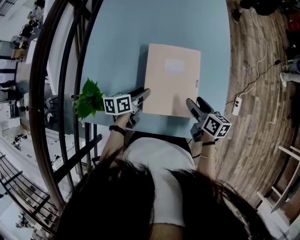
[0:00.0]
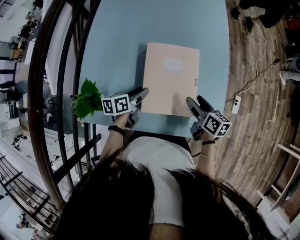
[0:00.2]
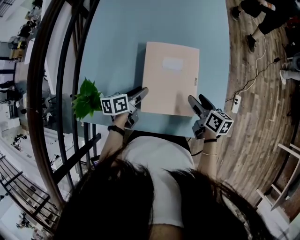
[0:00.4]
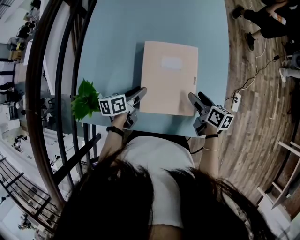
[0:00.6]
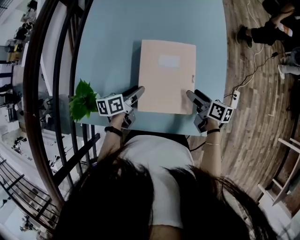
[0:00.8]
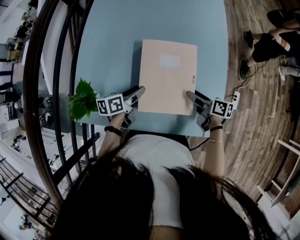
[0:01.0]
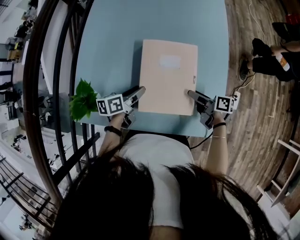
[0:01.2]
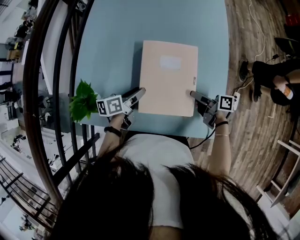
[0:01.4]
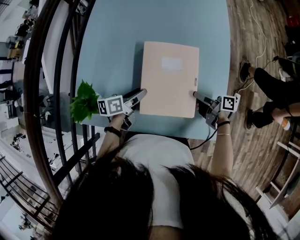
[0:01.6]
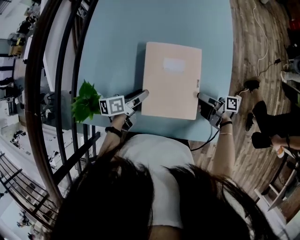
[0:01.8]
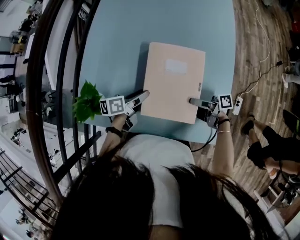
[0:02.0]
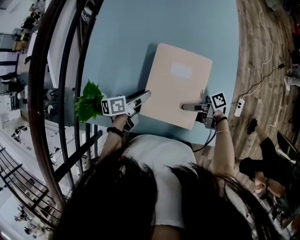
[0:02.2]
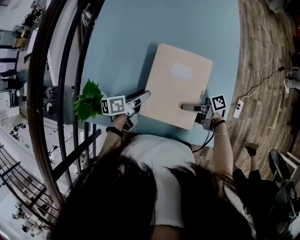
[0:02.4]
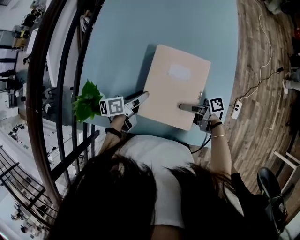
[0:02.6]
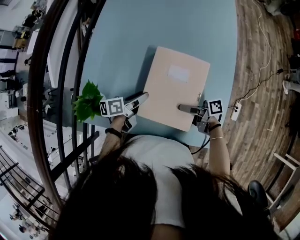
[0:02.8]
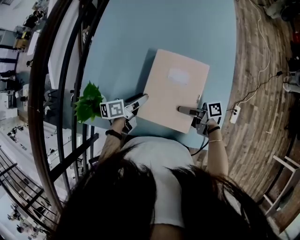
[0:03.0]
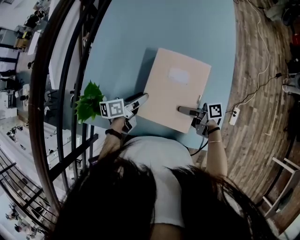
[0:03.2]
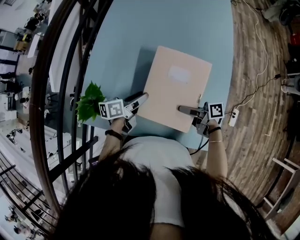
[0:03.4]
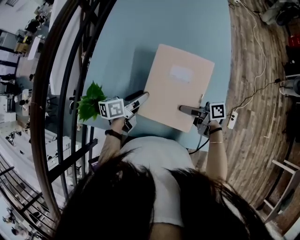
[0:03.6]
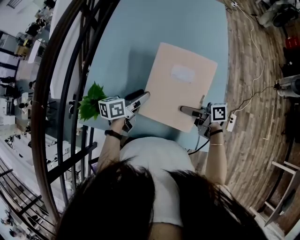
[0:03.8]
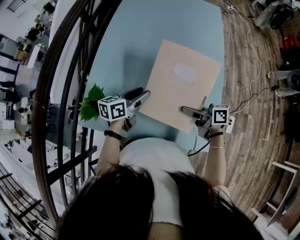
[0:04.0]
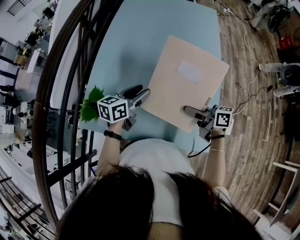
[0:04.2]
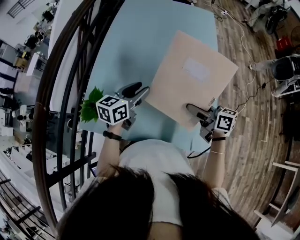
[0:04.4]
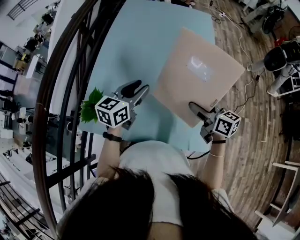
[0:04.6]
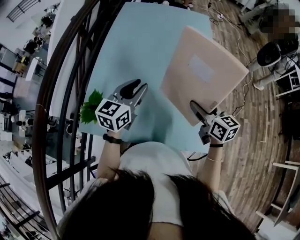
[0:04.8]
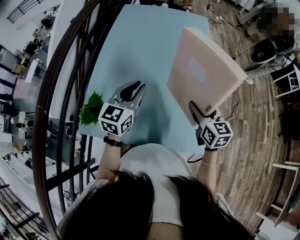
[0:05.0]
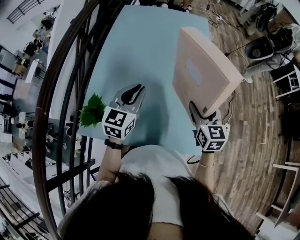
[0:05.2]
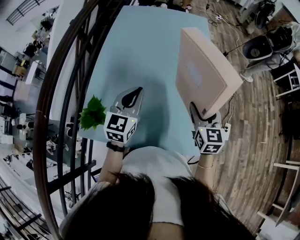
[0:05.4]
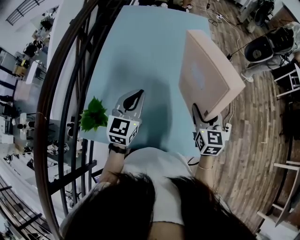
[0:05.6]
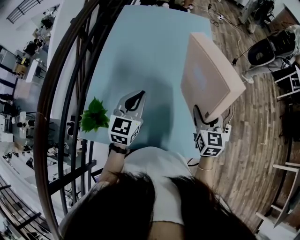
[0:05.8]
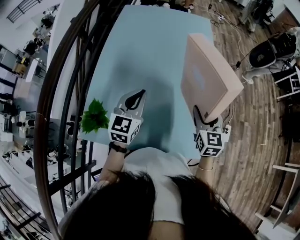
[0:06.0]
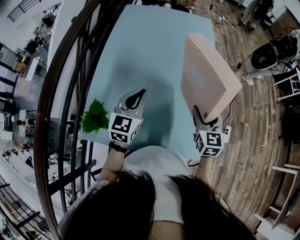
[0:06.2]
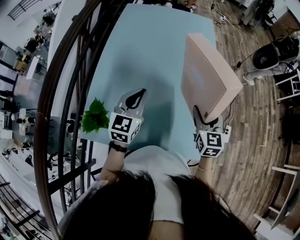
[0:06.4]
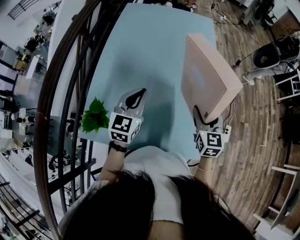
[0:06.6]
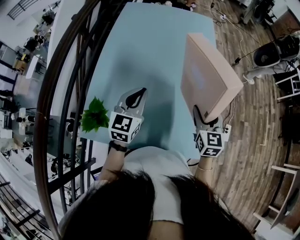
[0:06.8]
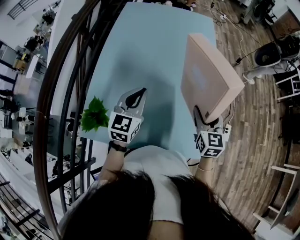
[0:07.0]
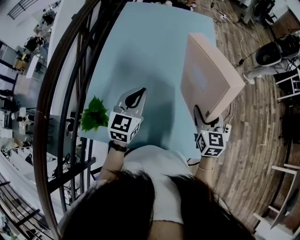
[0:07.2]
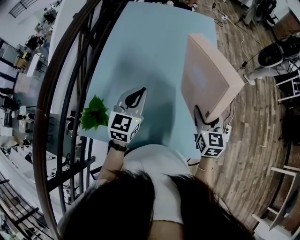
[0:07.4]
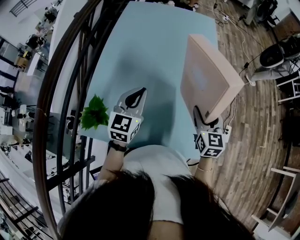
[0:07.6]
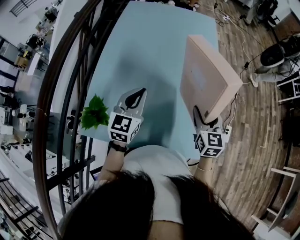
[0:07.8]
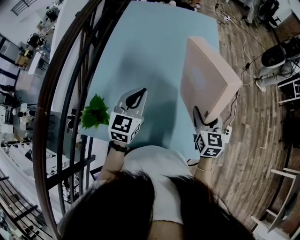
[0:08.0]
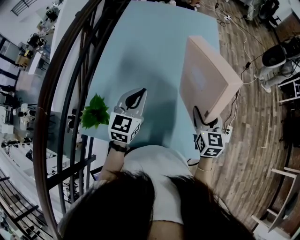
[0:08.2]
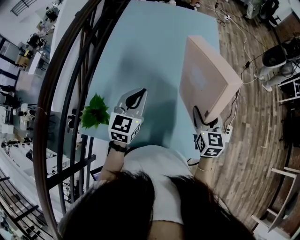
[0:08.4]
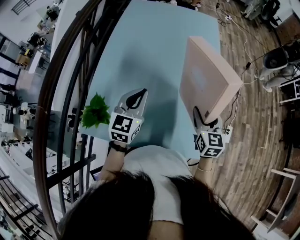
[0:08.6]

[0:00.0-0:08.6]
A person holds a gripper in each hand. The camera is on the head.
0:00.0 to 0:01.4: The right gripper moves downward, about 5 cm, and changes its angle by roughly 30 degrees.
0:01.4 to 0:02.8: The right gripper changes place by some 10 cm, and swivels roughly 20 degrees.
0:02.8 to 0:04.4: Both grippers travel together upward, about 15 cm. The left gripper twists approximately 40 degrees clockwise, seen from behind; the right gripper turns by about 40 degrees.
0:04.4 to 0:05.8: The left gripper heads upward, covering approximately 5 cm, rotates roughly 30 degrees, and closes its fingers. Meanwhile the right gripper shifts some 5 cm to the right, and changes its angle by roughly 60 degrees.
0:05.8 to 0:08.6: The grippers make only small movements.

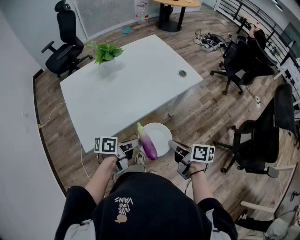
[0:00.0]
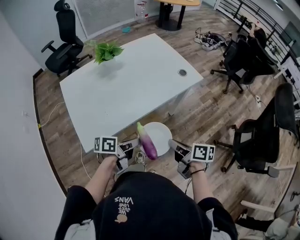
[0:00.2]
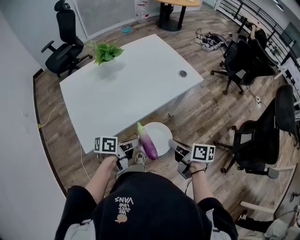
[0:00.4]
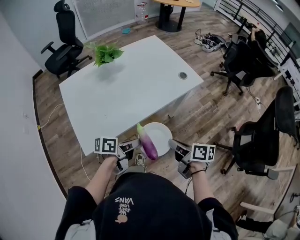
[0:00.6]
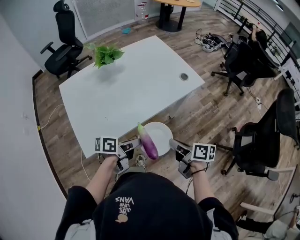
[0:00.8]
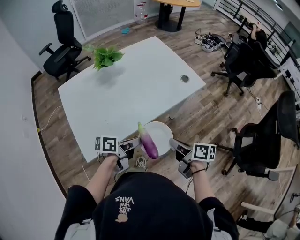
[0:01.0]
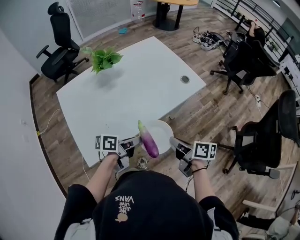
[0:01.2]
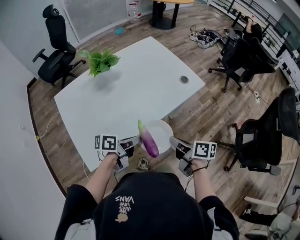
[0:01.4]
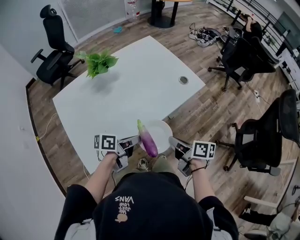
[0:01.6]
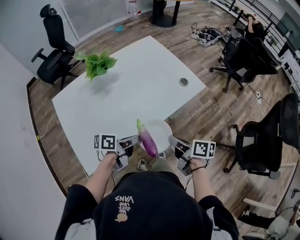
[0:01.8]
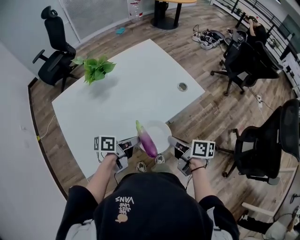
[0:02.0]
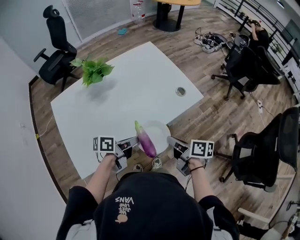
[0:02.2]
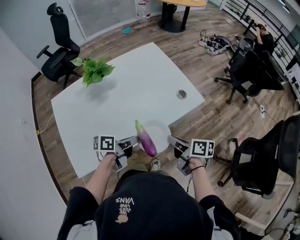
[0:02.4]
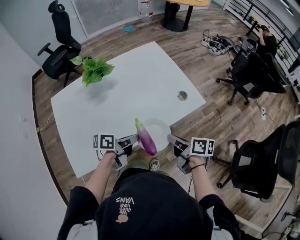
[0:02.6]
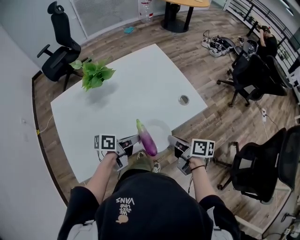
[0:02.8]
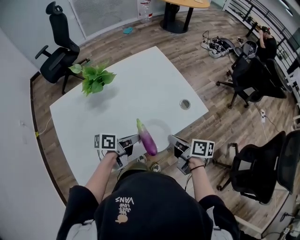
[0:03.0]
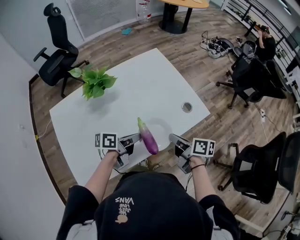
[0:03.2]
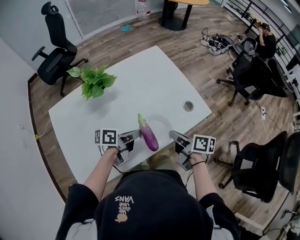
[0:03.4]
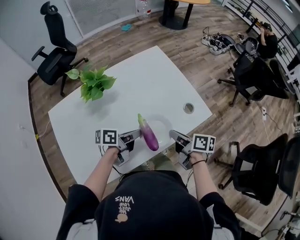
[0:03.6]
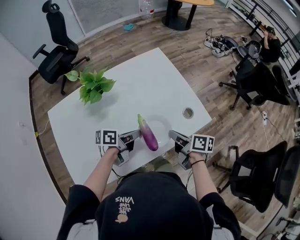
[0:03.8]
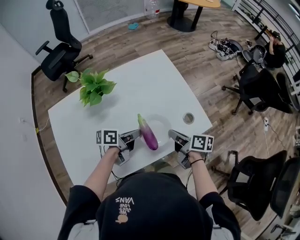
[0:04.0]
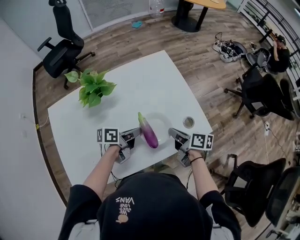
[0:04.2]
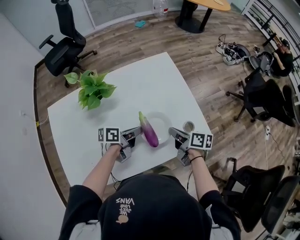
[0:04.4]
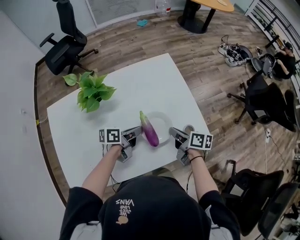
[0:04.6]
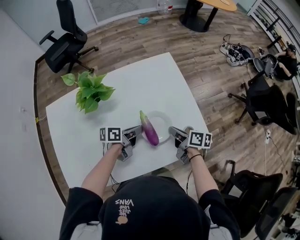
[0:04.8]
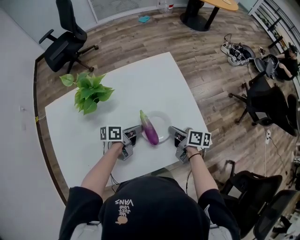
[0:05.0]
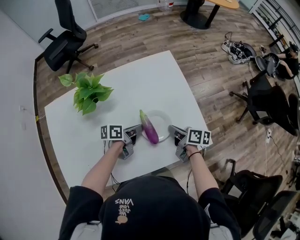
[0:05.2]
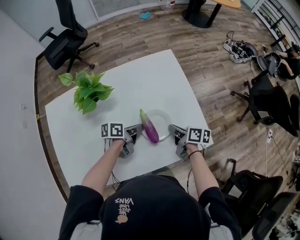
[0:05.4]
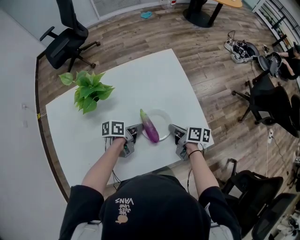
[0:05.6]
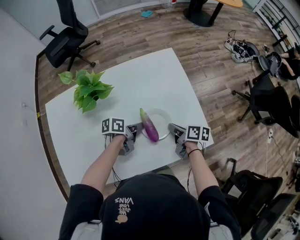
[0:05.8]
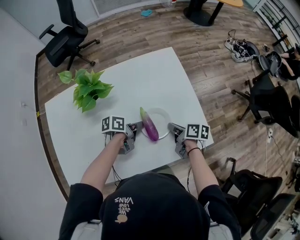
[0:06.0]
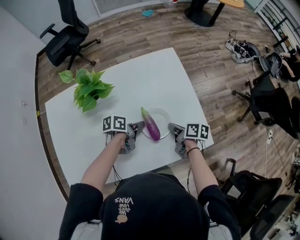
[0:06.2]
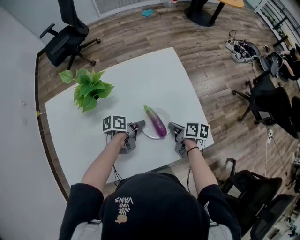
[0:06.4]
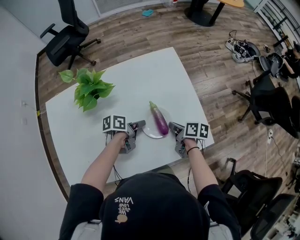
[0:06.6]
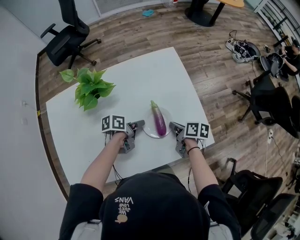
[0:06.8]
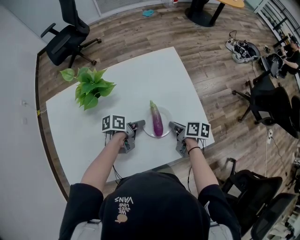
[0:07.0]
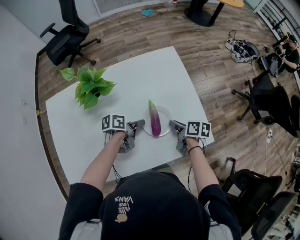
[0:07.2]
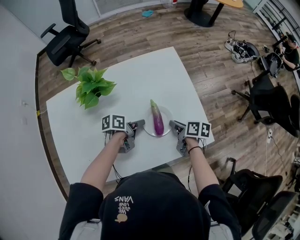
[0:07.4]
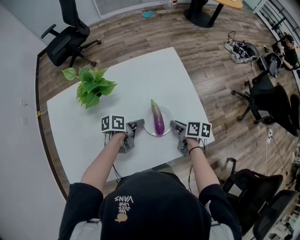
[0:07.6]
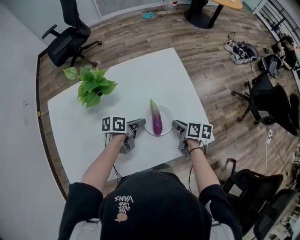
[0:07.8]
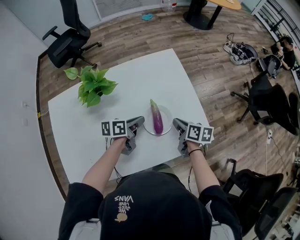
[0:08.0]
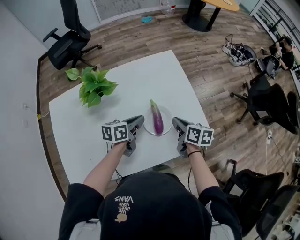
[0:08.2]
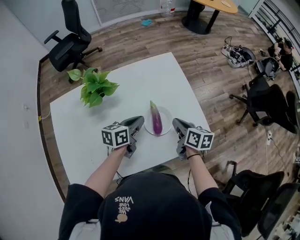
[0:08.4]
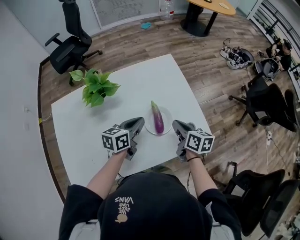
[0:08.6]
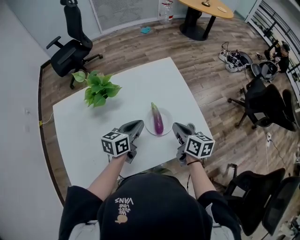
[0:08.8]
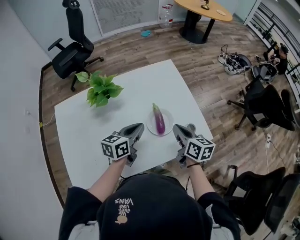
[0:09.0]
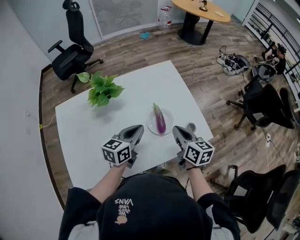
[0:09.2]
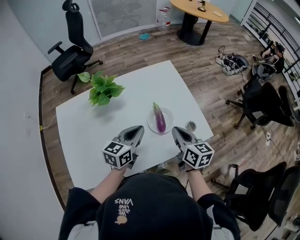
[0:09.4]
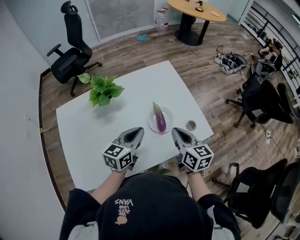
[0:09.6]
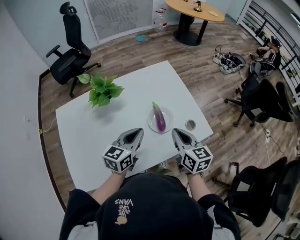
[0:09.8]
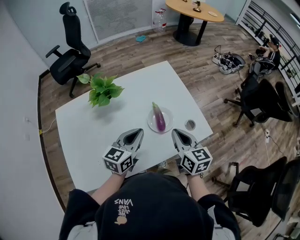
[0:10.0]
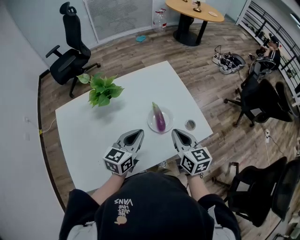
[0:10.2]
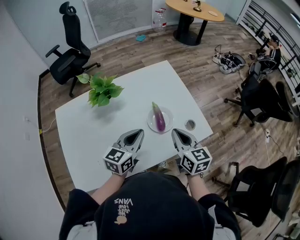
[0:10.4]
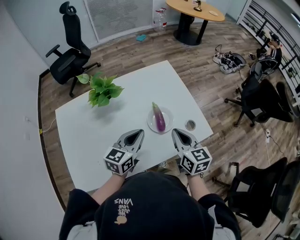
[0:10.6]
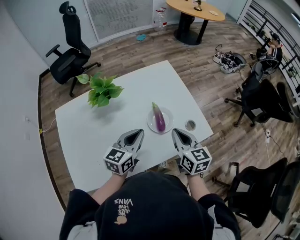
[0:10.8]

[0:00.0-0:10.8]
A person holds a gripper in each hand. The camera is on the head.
0:00.0 to 0:01.6: The two grippers go approximately 10 cm forward.
0:01.6 to 0:03.0: The two grippers go approximately 15 cm forward.
0:03.0 to 0:04.6: The grippers both shift forward by roughly 20 cm.
0:04.6 to 0:06.2: Both grippers travel together downward, approximately 5 cm.
0:06.2 to 0:07.8: The grippers move only a little.
0:07.8 to 0:09.2: Both grippers travel together upward and backward, approximately 15 cm. The left gripper changes its angle by some 40 degrees. The right gripper changes its angle by some 30 degrees.
0:09.2 to 0:10.8: There are only small adjustments of the grippers.

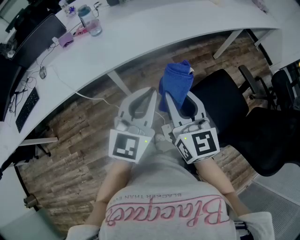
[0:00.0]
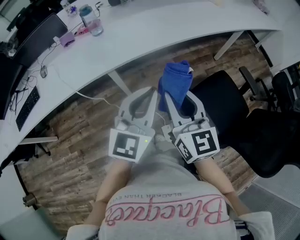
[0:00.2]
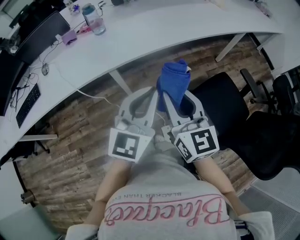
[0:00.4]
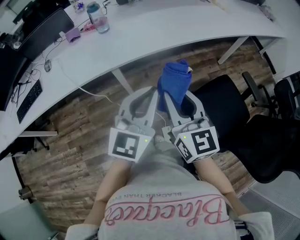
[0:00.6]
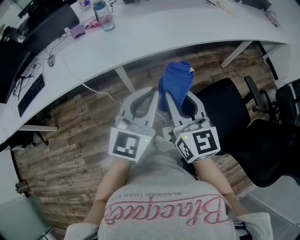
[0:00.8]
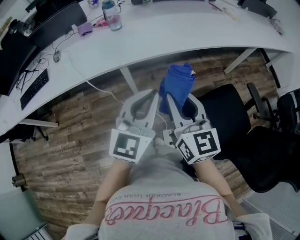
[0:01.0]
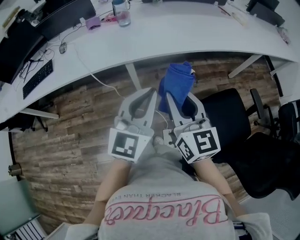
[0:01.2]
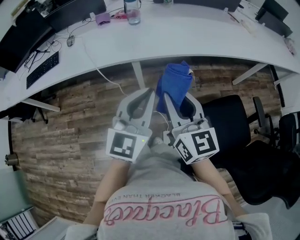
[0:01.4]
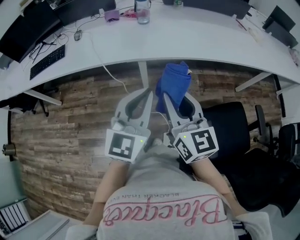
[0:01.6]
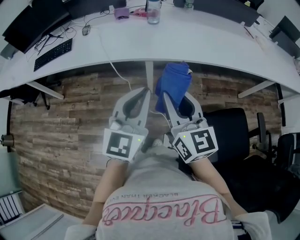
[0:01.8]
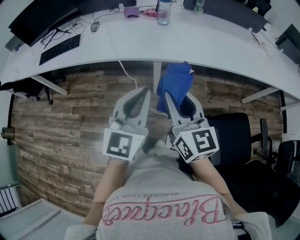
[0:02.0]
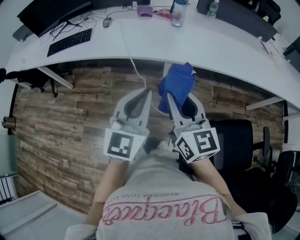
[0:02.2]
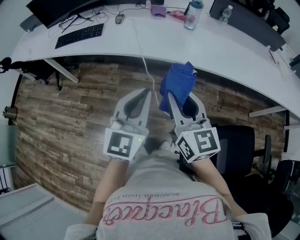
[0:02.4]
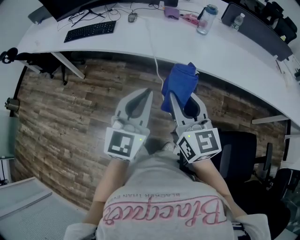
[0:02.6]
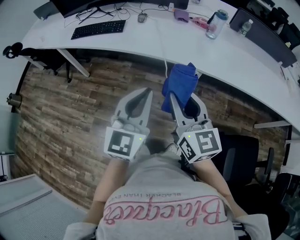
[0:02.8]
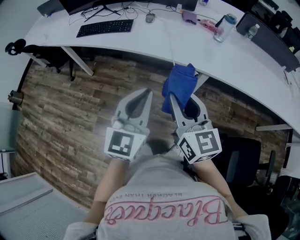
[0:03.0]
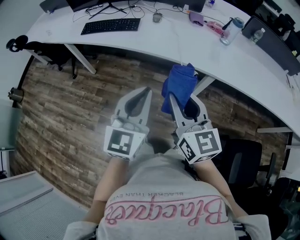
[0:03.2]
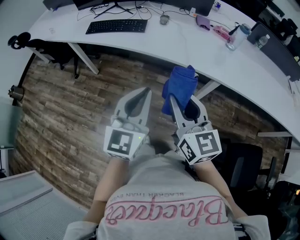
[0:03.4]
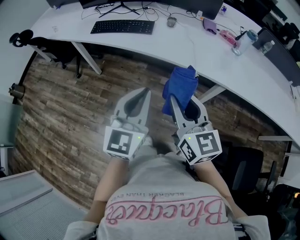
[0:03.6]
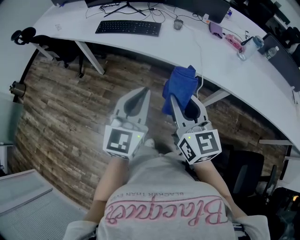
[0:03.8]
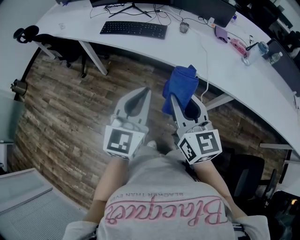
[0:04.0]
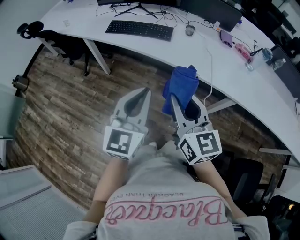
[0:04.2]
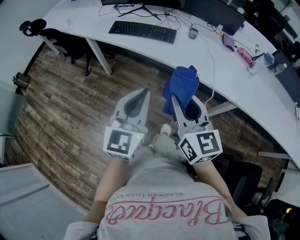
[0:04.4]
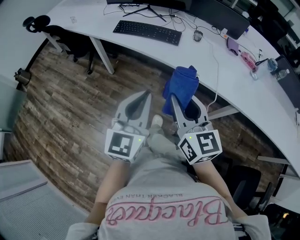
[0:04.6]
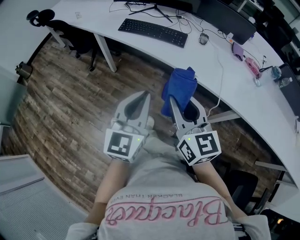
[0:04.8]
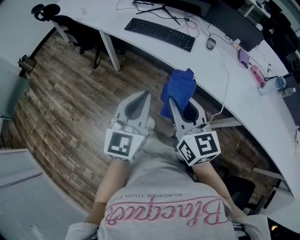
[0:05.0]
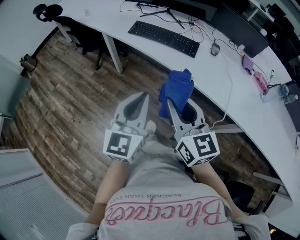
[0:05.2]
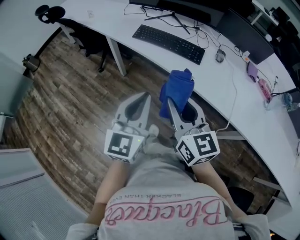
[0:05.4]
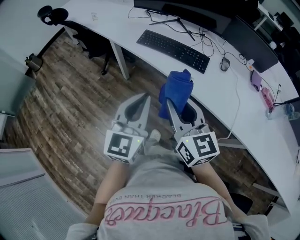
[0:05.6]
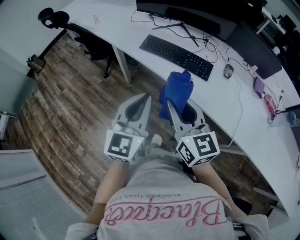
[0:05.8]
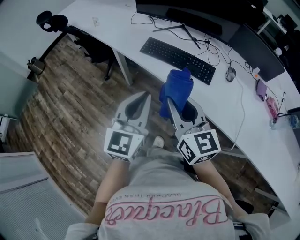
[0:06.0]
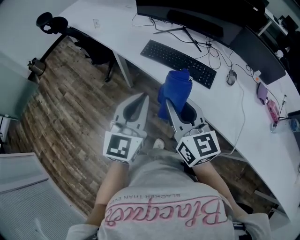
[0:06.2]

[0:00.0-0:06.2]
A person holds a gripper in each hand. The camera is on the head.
0:00.0 to 0:01.6: The grippers both shift to the left by about 10 cm. The right gripper turns by roughly 20 degrees; the left gripper swivels about 20 degrees.
0:01.6 to 0:03.2: The two grippers go about 35 cm to the left. The left gripper rotates approximately 20 degrees. Meanwhile the right gripper turns by some 20 degrees.
0:03.2 to 0:04.6: Both grippers travel together to the left and forward, roughly 20 cm.
0:04.6 to 0:06.2: The grippers both shift forward and to the left by about 25 cm.
